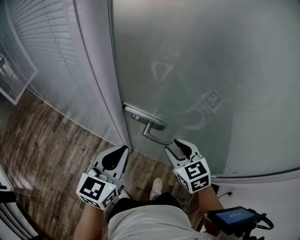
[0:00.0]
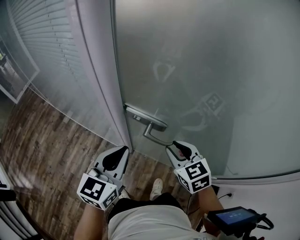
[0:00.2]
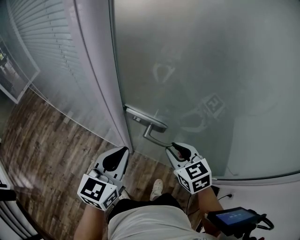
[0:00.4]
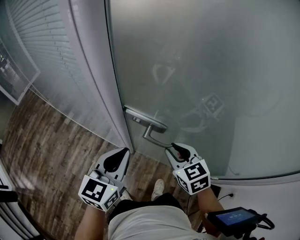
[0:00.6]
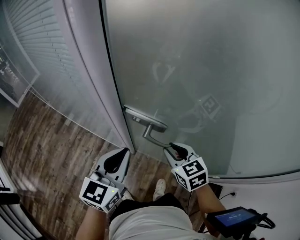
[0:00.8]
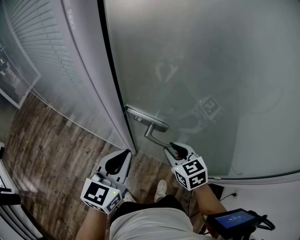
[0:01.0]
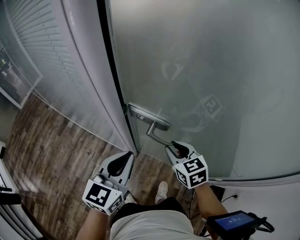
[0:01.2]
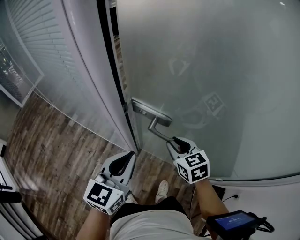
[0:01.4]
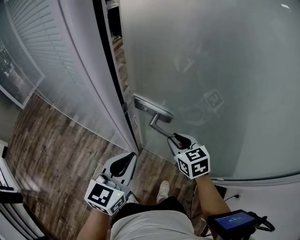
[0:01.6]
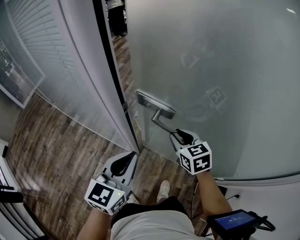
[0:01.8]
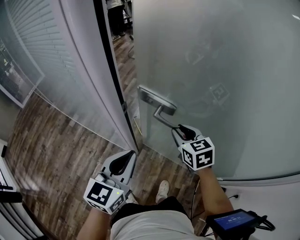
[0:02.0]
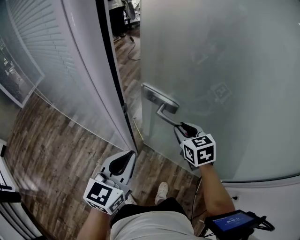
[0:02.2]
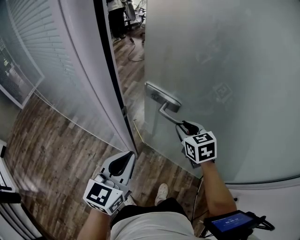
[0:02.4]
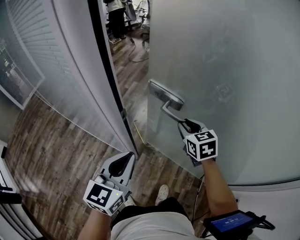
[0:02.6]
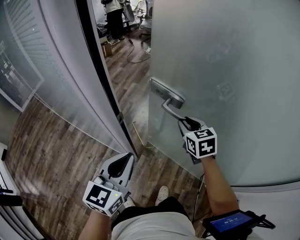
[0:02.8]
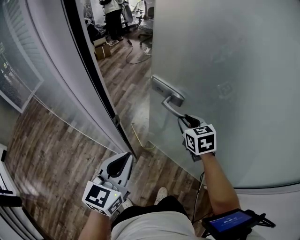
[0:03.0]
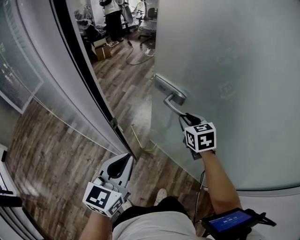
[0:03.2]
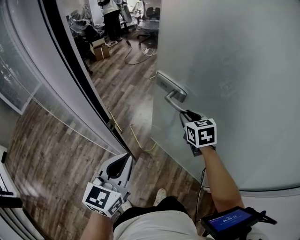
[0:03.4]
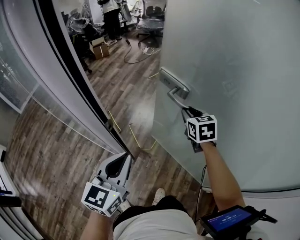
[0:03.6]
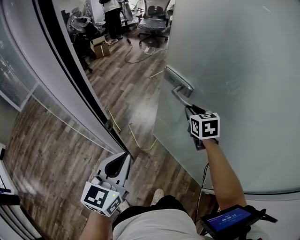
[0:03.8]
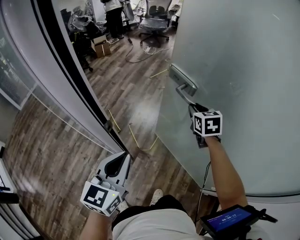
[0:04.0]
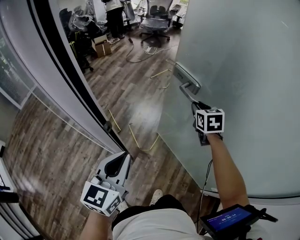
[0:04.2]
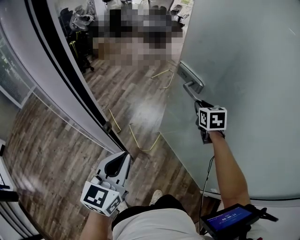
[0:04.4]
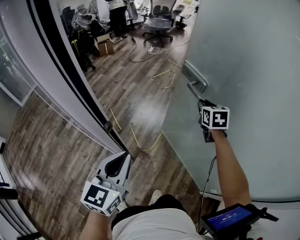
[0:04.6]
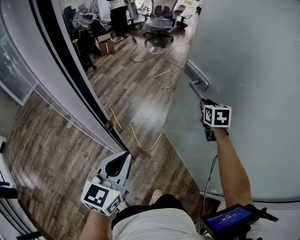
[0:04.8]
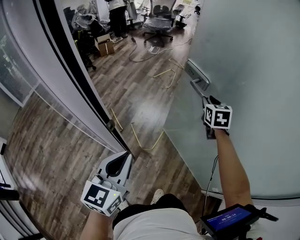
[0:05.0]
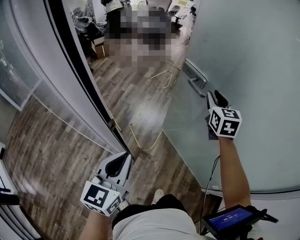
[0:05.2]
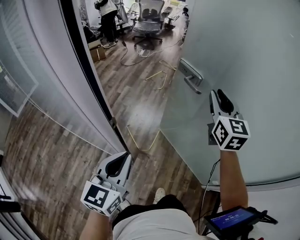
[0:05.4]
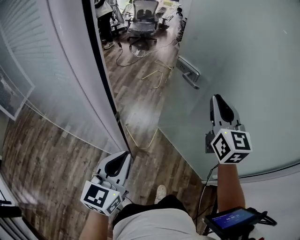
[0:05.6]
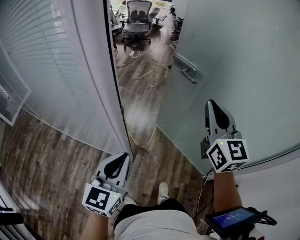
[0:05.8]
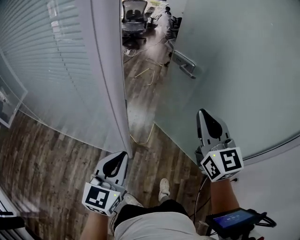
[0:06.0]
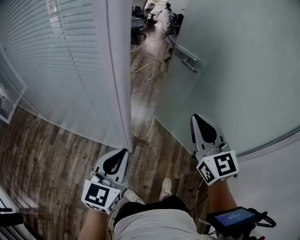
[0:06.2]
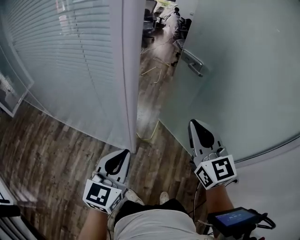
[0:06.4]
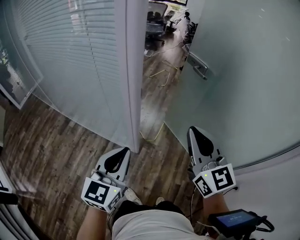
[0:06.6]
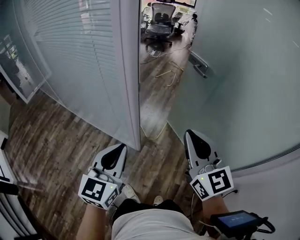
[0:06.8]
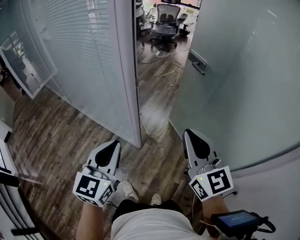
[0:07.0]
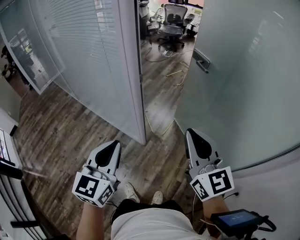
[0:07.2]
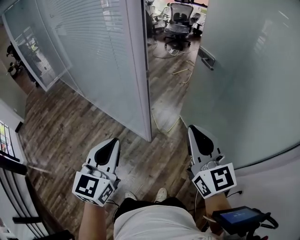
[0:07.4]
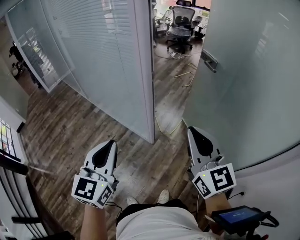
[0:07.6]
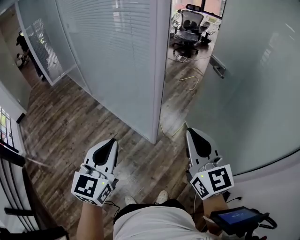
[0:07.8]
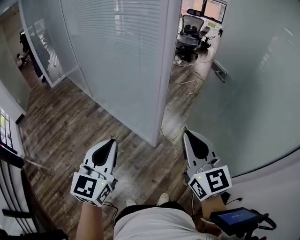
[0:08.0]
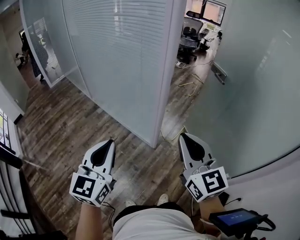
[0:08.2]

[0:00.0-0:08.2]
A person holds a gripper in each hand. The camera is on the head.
0:00.0 to 0:01.6: There are only small adjustments of the grippers.
0:01.6 to 0:03.2: The right gripper goes roughly 15 cm forward and to the right.
0:03.2 to 0:05.0: The right gripper shifts some 10 cm forward and to the right.
0:05.0 to 0:06.6: The left gripper moves backward and to the left, approximately 15 cm, while the right gripper goes about 40 cm backward, tips its fingers upward by approximately 30 degrees, and closes up.
0:06.6 to 0:08.2: The two grippers go about 20 cm backward and to the left. The left gripper swivels roughly 20 degrees.

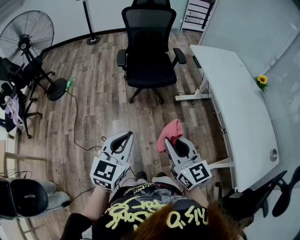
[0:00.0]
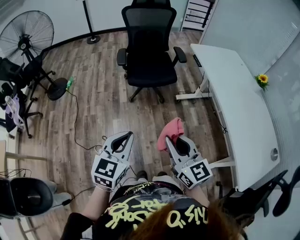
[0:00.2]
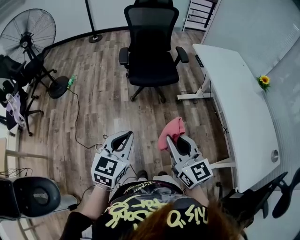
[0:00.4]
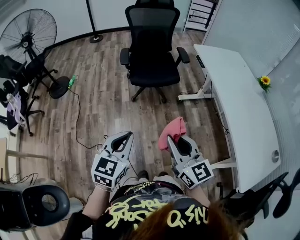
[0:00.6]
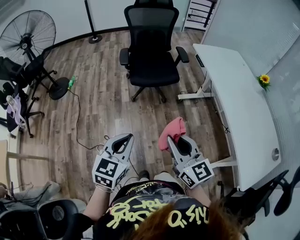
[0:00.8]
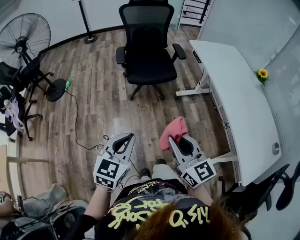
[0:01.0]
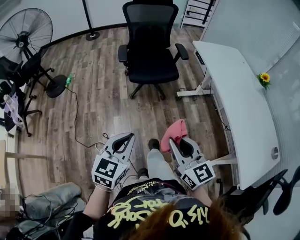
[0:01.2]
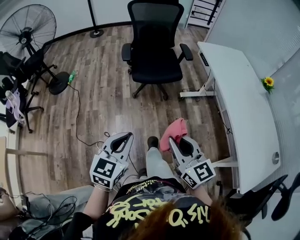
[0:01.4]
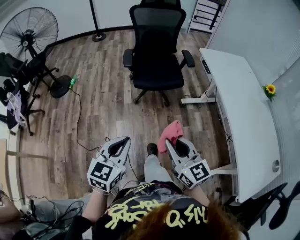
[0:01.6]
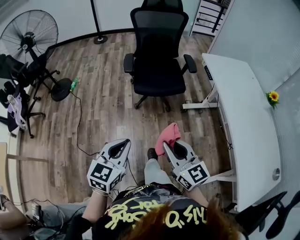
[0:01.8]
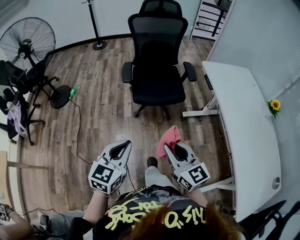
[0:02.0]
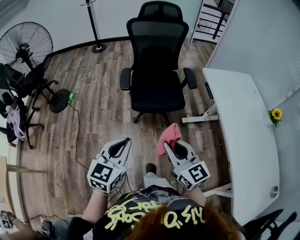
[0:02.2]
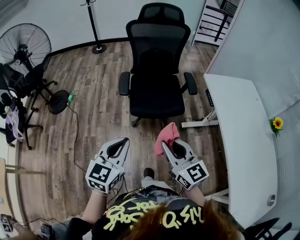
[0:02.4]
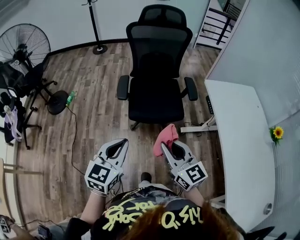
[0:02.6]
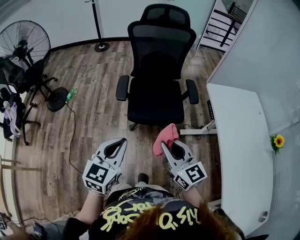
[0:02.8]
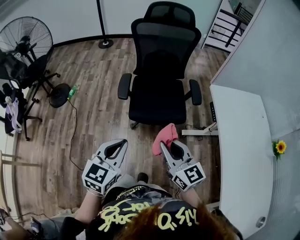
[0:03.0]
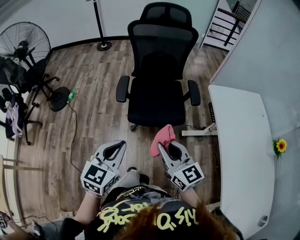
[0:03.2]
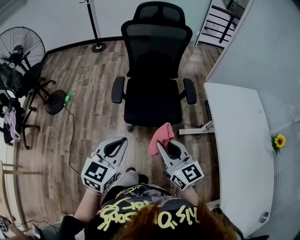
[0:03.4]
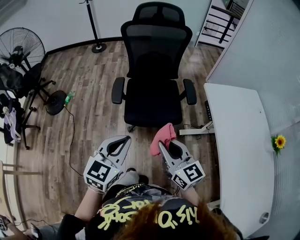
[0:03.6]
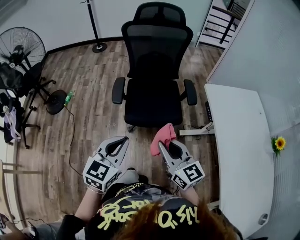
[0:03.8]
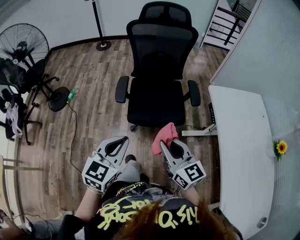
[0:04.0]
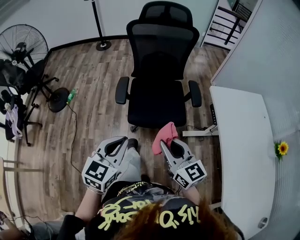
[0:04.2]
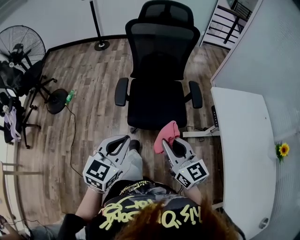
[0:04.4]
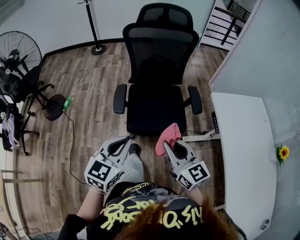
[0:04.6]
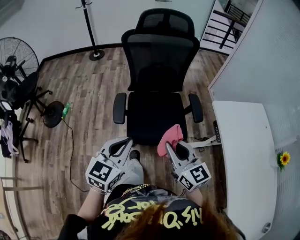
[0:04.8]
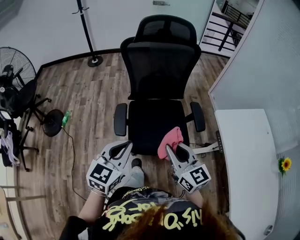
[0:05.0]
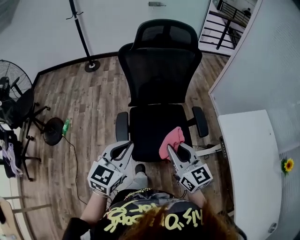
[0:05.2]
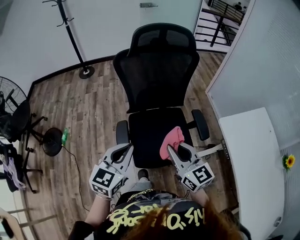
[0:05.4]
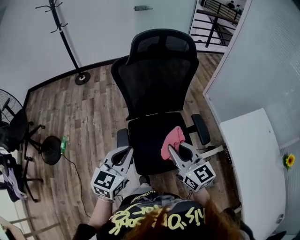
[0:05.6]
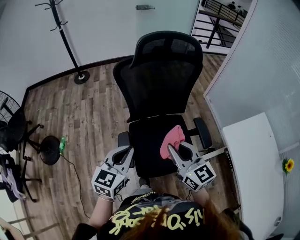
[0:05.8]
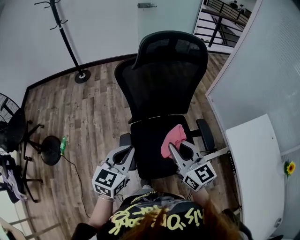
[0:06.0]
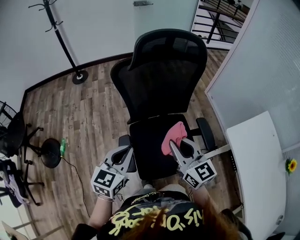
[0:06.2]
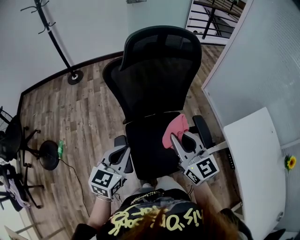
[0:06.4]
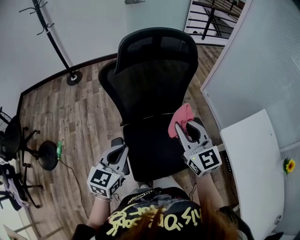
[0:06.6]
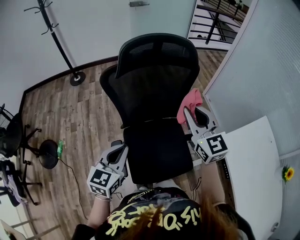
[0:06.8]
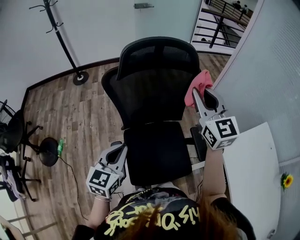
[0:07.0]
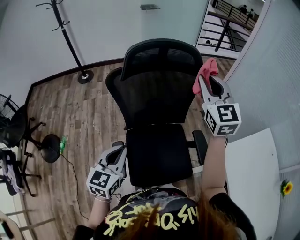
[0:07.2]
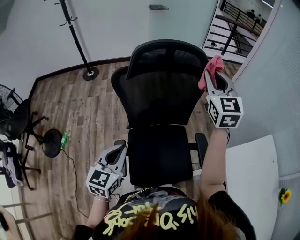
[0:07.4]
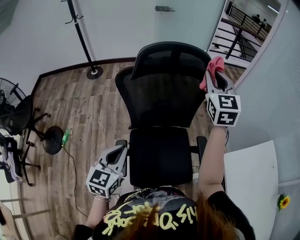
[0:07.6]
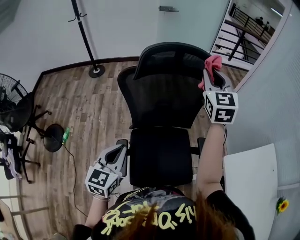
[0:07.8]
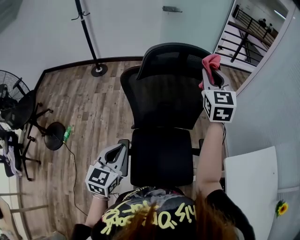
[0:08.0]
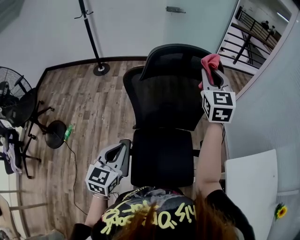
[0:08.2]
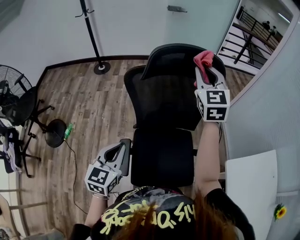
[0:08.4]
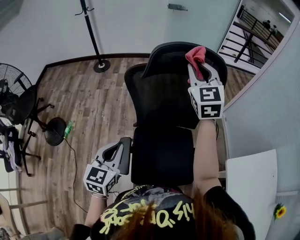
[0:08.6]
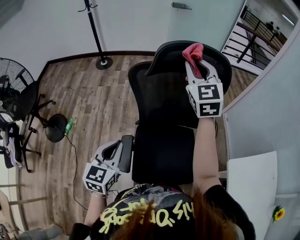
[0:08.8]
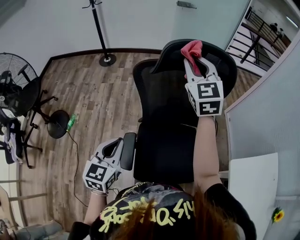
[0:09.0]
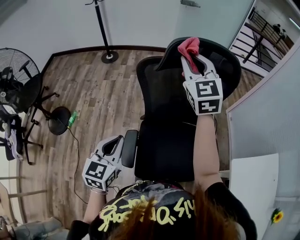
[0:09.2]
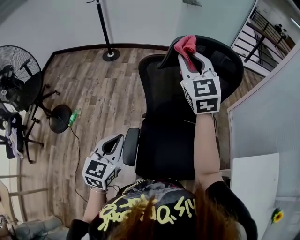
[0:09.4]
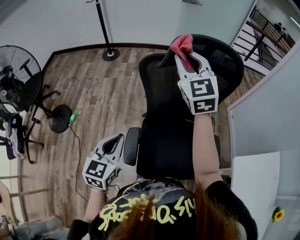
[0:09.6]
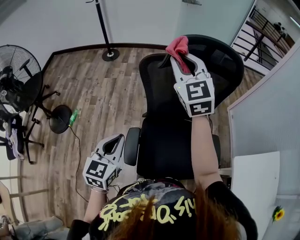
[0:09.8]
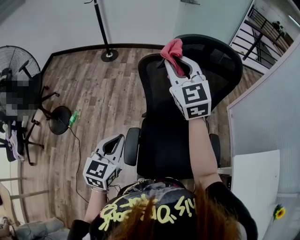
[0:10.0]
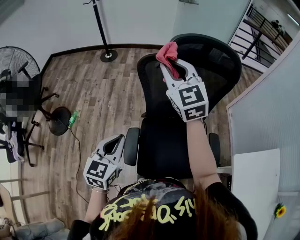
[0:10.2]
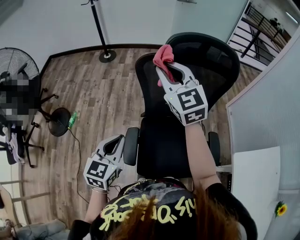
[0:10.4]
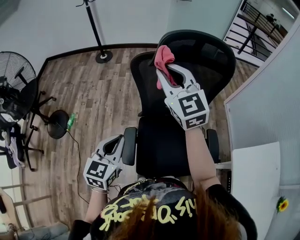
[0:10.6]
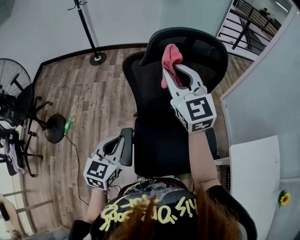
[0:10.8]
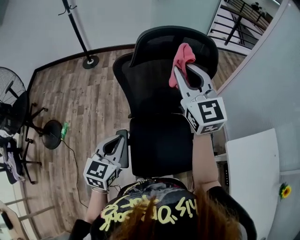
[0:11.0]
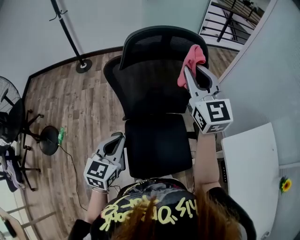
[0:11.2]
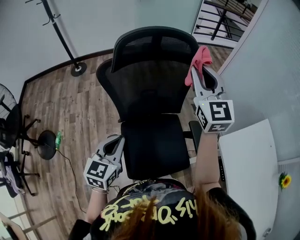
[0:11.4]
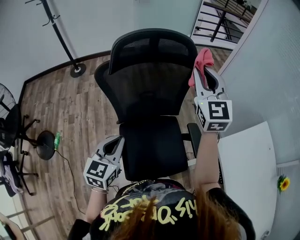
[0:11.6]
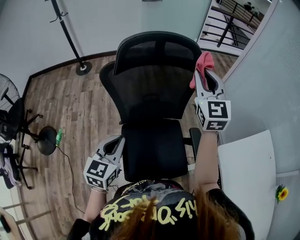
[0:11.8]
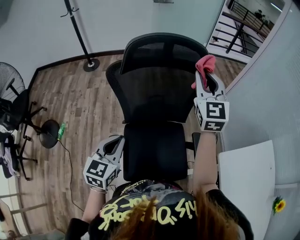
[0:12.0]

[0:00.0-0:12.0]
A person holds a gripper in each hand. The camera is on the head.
0:00.0 to 0:01.6: The right gripper goes about 5 cm forward; the left gripper ends up about 5 cm from where it was.
0:01.6 to 0:03.0: The two grippers go about 30 cm forward.
0:03.0 to 0:04.4: The two grippers go roughly 5 cm forward.
0:04.4 to 0:06.0: Both grippers travel together forward, approximately 35 cm.
0:06.0 to 0:07.6: The left gripper moves forward, approximately 5 cm; the right gripper heads forward, upward and to the right, covering about 35 cm, and rotates roughly 30 degrees.
0:07.6 to 0:09.0: The left gripper goes approximately 5 cm to the left. Meanwhile the right gripper is displaced to the left by some 20 cm.
0:09.0 to 0:10.4: The right gripper goes approximately 10 cm to the left and backward.
0:10.4 to 0:12.0: The left gripper is displaced to the right by some 10 cm, while the right gripper goes about 25 cm to the right, and changes its angle by roughly 30 degrees.

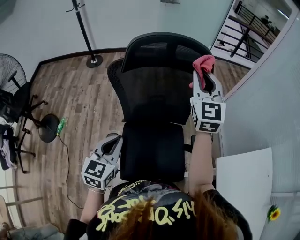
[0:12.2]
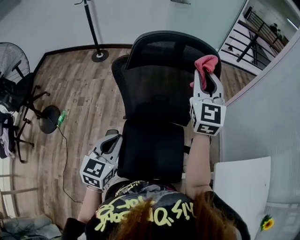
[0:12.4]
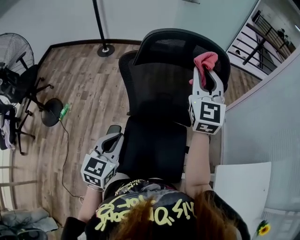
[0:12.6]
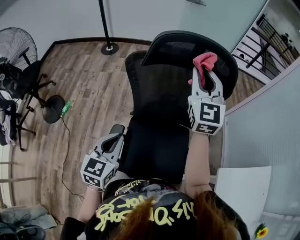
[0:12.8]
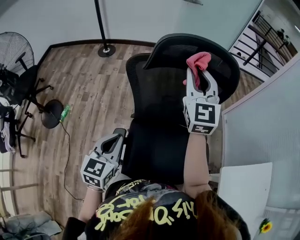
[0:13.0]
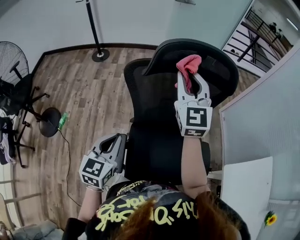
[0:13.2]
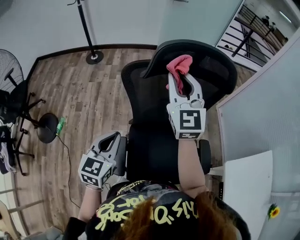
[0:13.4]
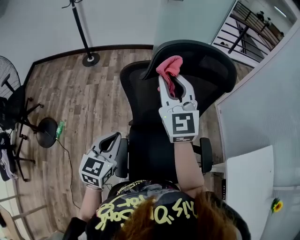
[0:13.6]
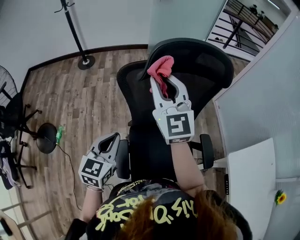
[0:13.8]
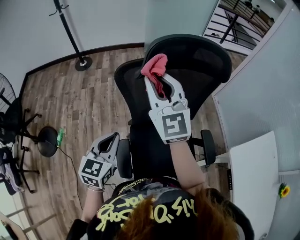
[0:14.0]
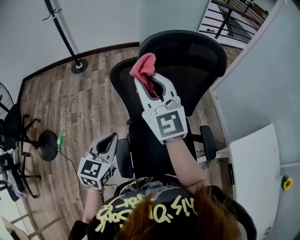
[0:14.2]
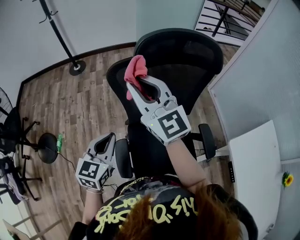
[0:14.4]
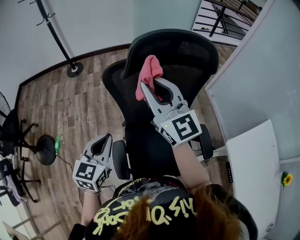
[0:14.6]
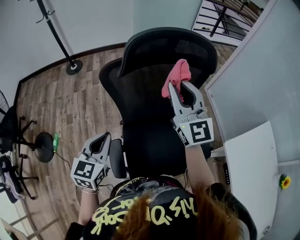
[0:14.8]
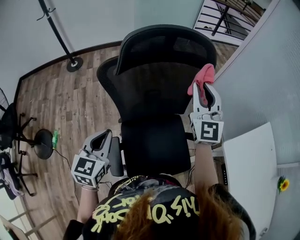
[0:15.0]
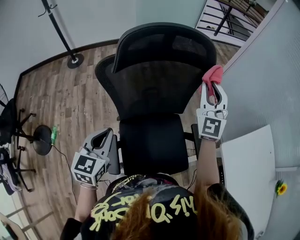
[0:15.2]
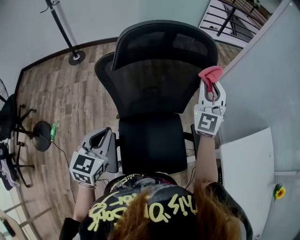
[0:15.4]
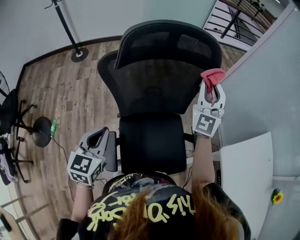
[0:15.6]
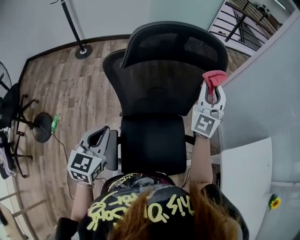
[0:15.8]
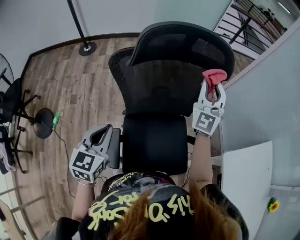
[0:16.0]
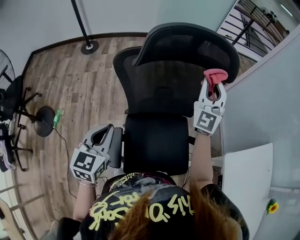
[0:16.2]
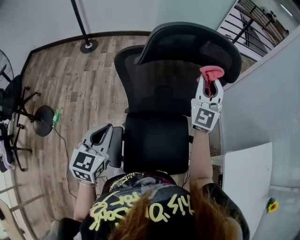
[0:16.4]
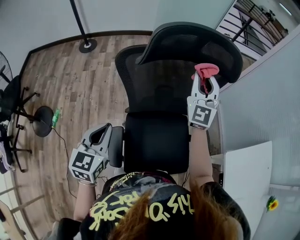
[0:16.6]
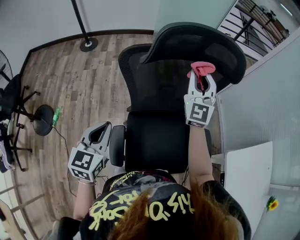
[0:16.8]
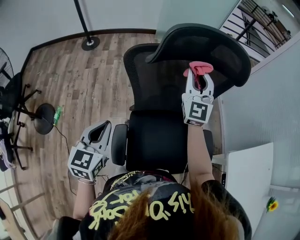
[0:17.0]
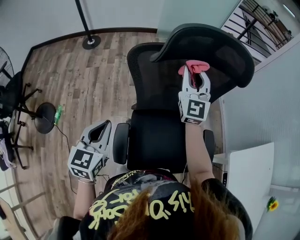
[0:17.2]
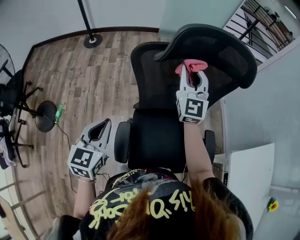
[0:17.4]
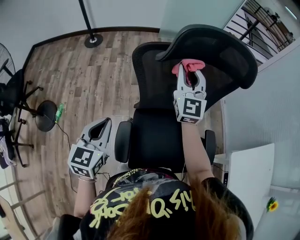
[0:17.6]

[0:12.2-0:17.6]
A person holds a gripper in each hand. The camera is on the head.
0:12.2 to 0:13.6: The right gripper goes about 20 cm to the left. The left gripper goes some 10 cm to the left and forward.
0:13.6 to 0:15.0: The right gripper goes roughly 20 cm to the right.
0:15.0 to 0:16.2: The right gripper heads forward, covering roughly 5 cm.
0:16.2 to 0:17.6: The left gripper is displaced to the left by roughly 5 cm. The right gripper moves to the left, roughly 15 cm, and swivels some 20 degrees.
